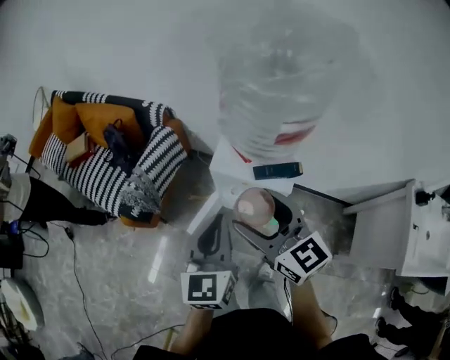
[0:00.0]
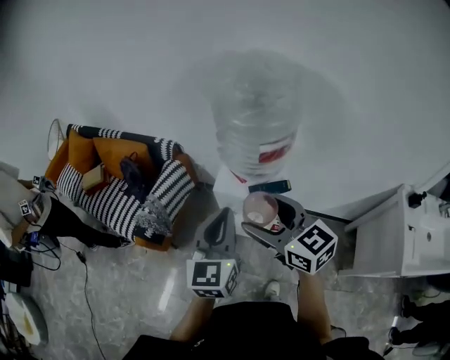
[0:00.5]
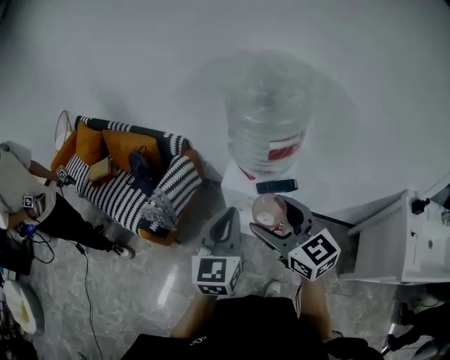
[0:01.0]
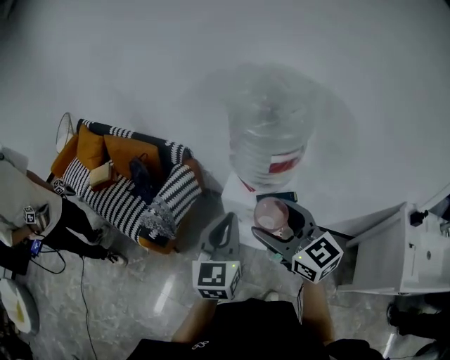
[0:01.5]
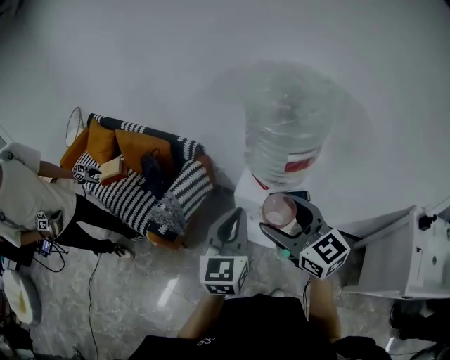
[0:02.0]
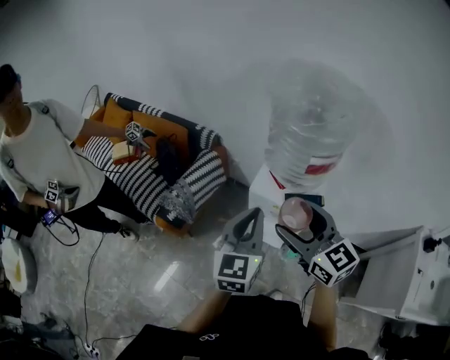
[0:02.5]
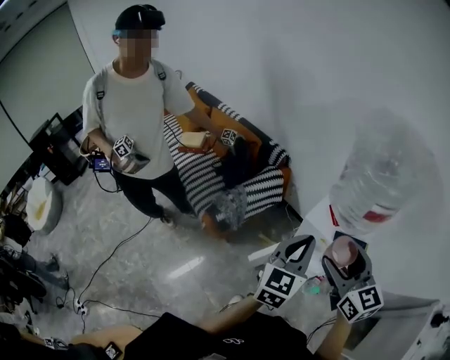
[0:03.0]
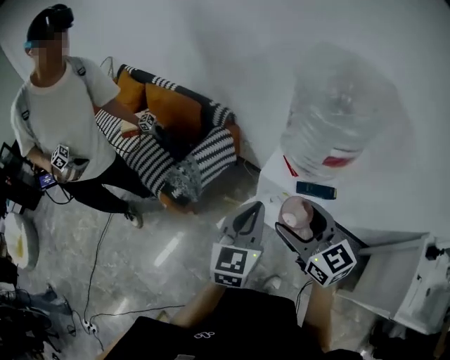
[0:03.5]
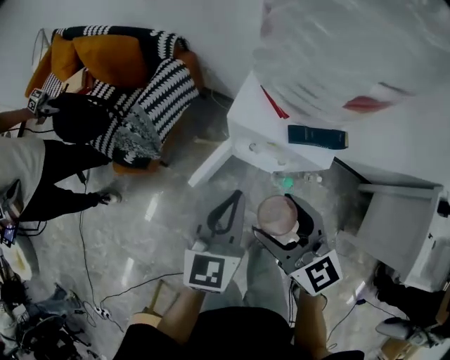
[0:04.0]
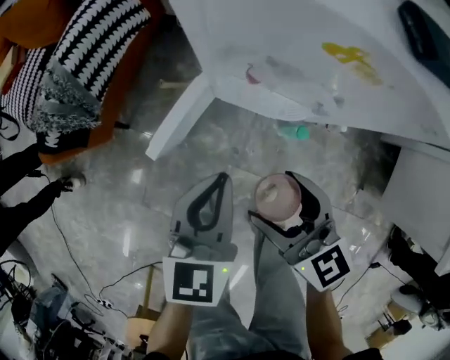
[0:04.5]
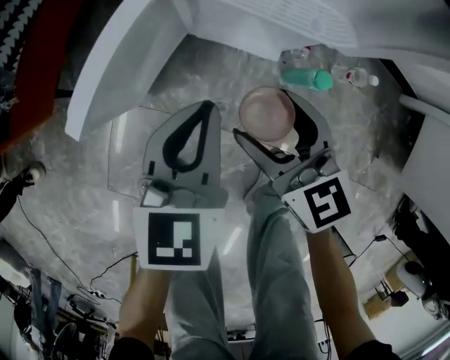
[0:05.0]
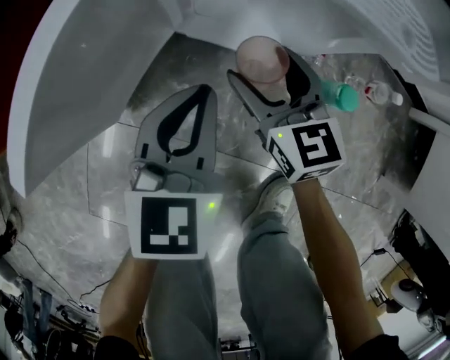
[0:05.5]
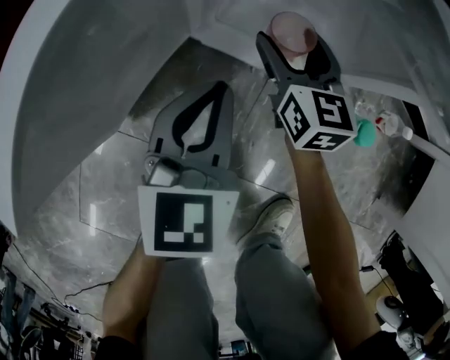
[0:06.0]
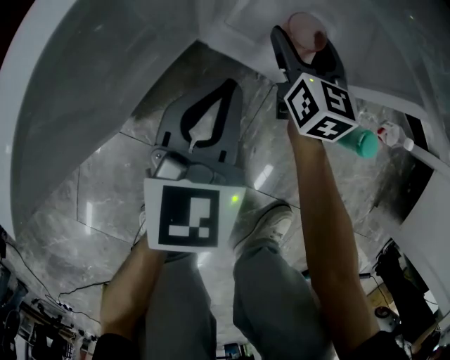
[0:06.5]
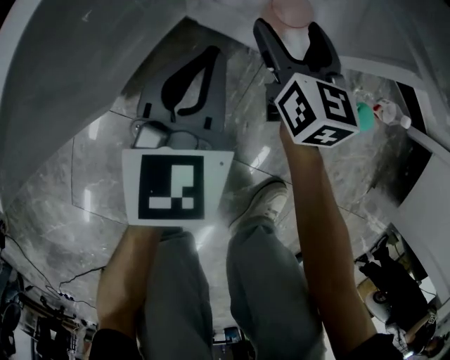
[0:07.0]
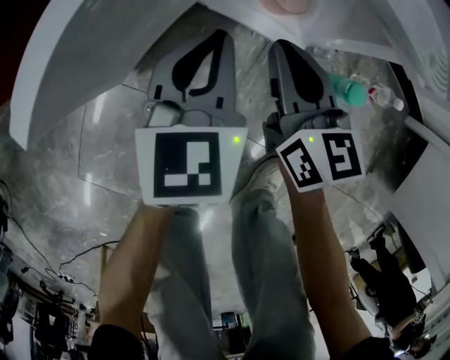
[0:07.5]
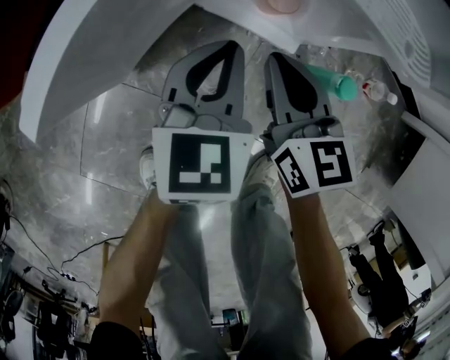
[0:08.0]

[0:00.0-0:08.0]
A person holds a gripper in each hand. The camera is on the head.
0:00.0 to 0:02.0: Both grippers travel together upward, approximately 10 cm.
0:02.0 to 0:04.0: The two grippers go approximately 20 cm downward.
0:04.0 to 0:06.0: The two grippers go roughly 70 cm downward. The right gripper turns by some 30 degrees.
0:06.0 to 0:08.0: The right gripper travels backward and upward by about 15 cm, and closes up. Meanwhile the left gripper heads upward, covering some 5 cm.

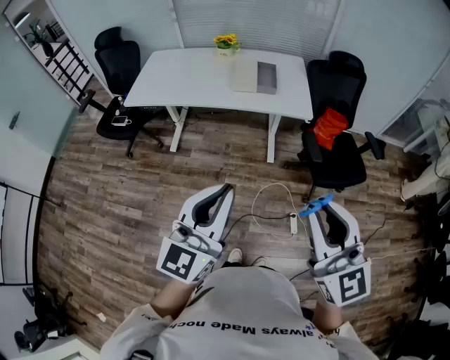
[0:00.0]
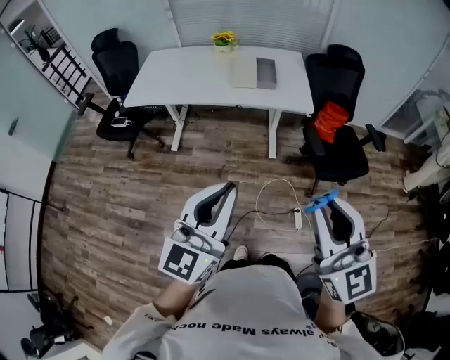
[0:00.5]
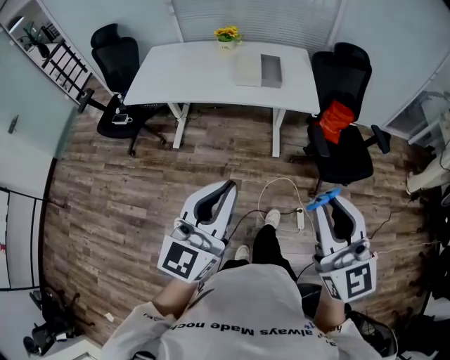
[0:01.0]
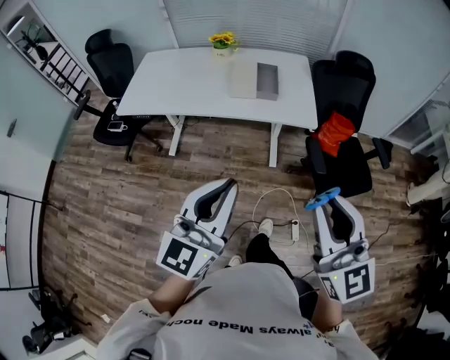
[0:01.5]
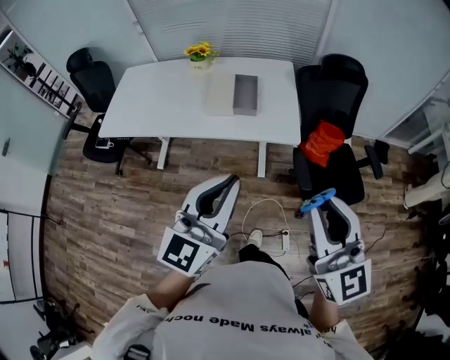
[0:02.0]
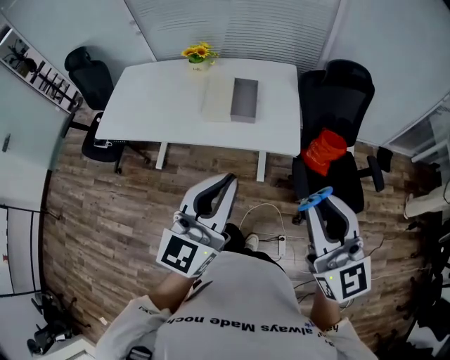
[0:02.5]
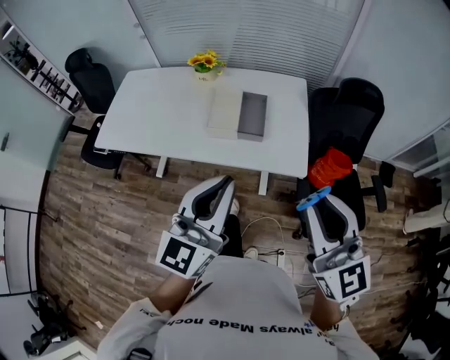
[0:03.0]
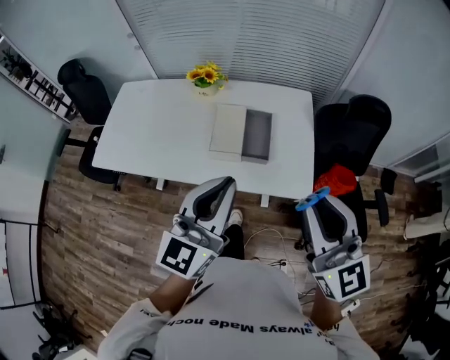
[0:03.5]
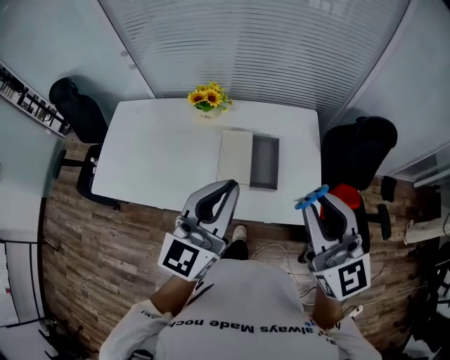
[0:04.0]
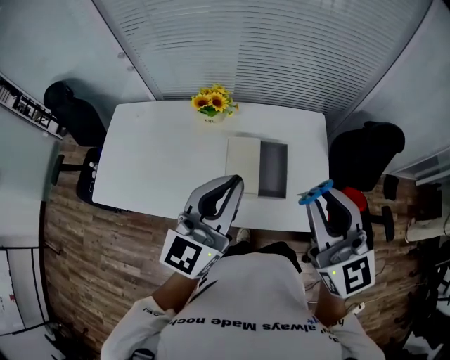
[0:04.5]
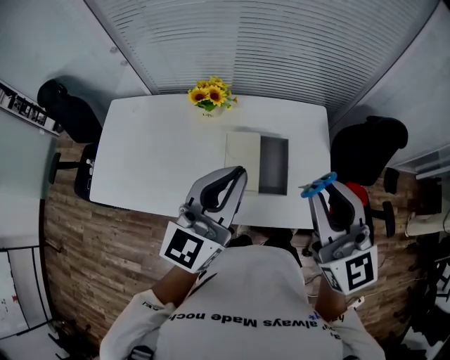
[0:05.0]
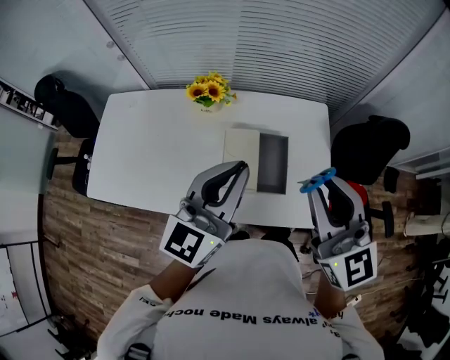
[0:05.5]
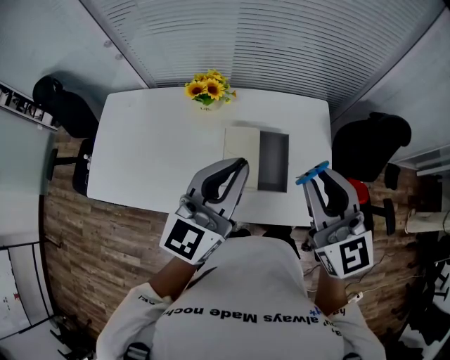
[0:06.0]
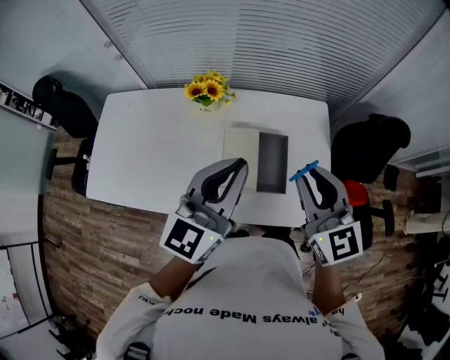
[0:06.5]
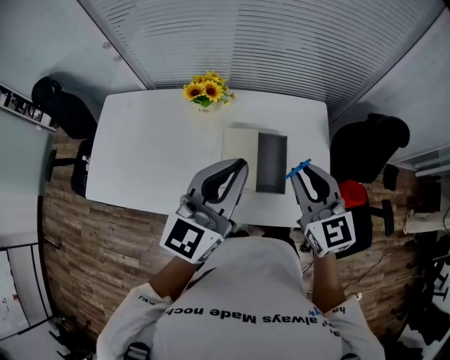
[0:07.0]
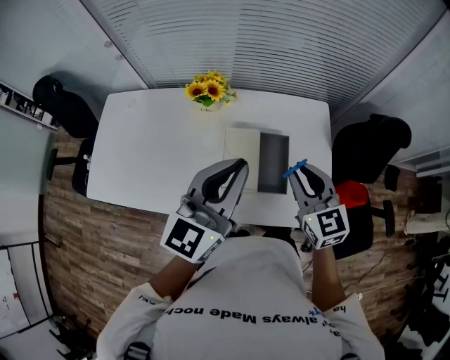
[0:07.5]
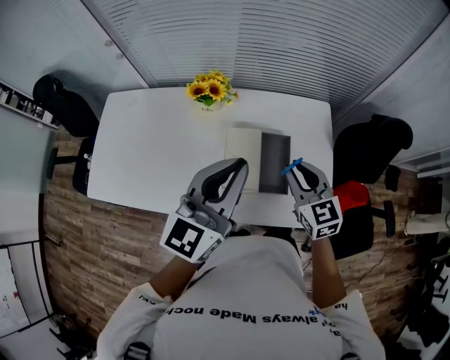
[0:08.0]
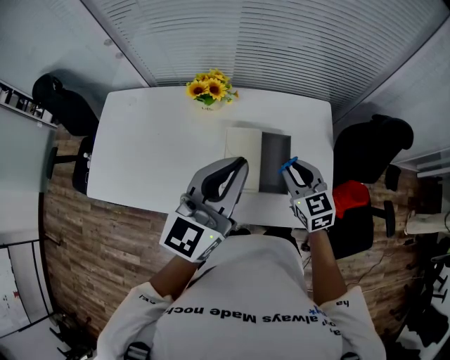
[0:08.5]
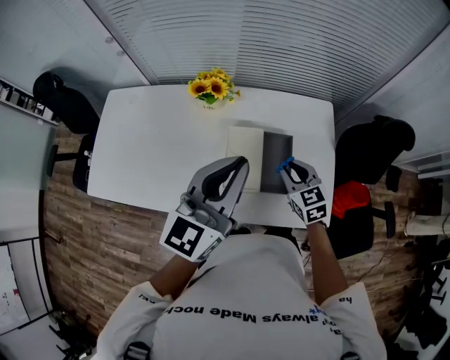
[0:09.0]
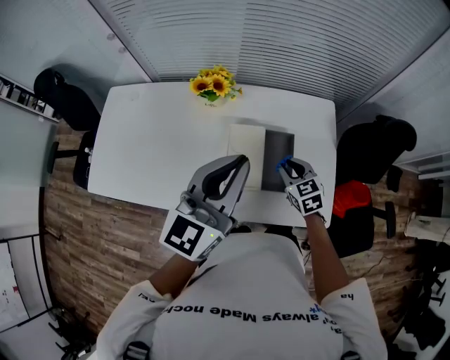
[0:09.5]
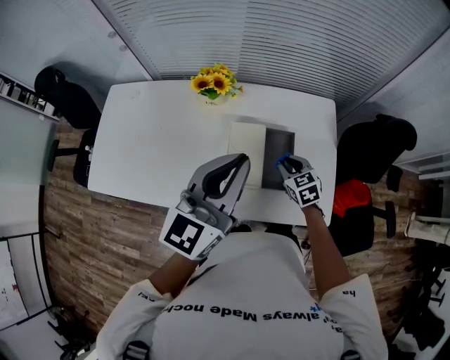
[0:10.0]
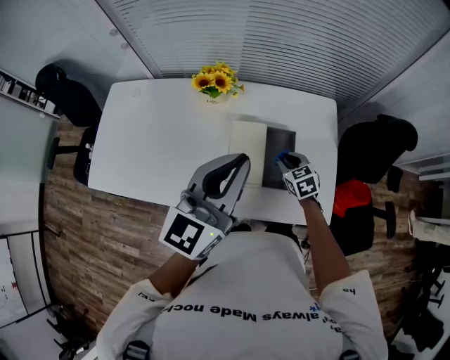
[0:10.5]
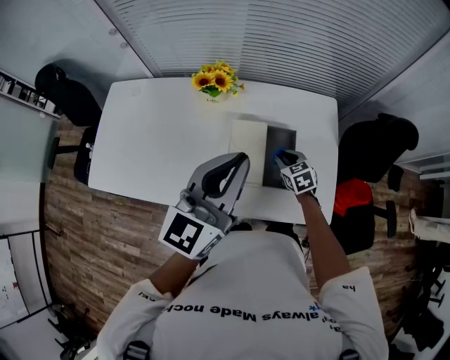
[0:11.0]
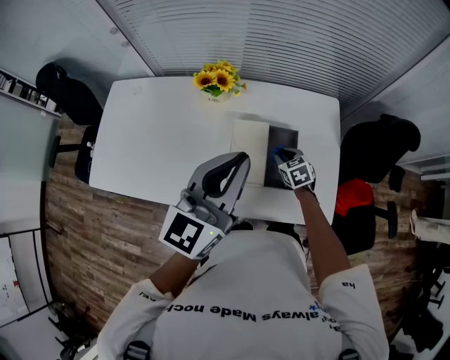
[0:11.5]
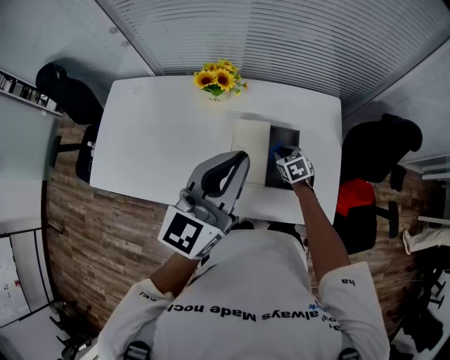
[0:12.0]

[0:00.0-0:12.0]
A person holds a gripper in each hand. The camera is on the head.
0:00.0 to 0:02.0: Both grippers travel together forward and to the right, roughly 25 cm.
0:02.0 to 0:04.0: Both grippers move forward, approximately 35 cm.
0:04.0 to 0:06.0: The two grippers go roughly 10 cm forward.
0:06.0 to 0:08.0: The right gripper goes roughly 15 cm downward.
0:08.0 to 0:10.0: The right gripper moves downward, about 15 cm.
0:10.0 to 0:12.0: The right gripper travels downward by approximately 10 cm.

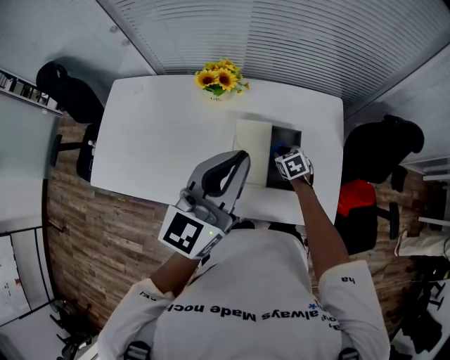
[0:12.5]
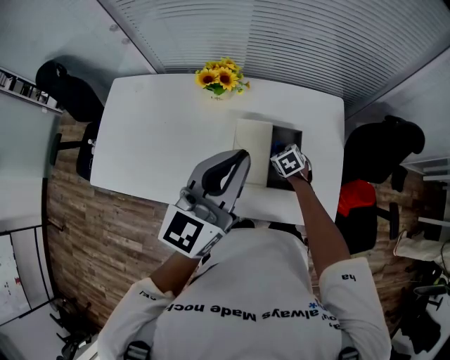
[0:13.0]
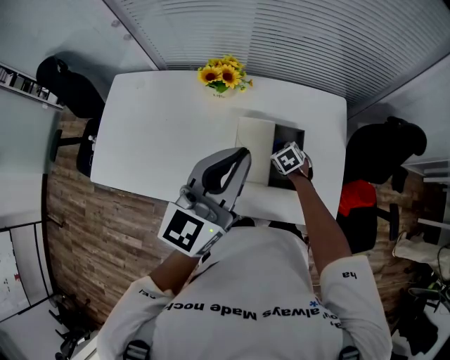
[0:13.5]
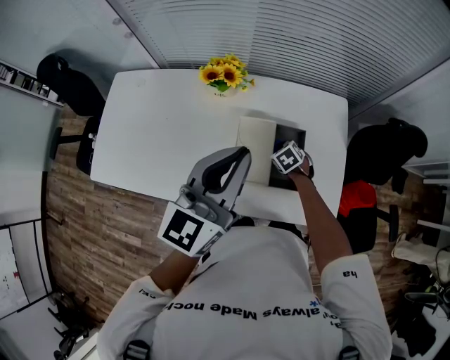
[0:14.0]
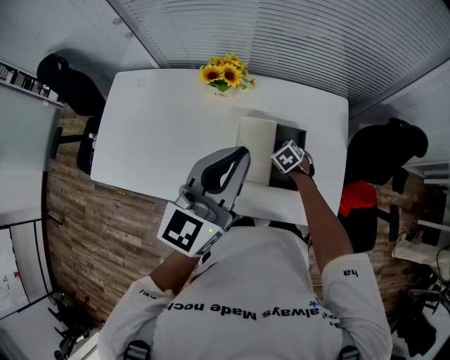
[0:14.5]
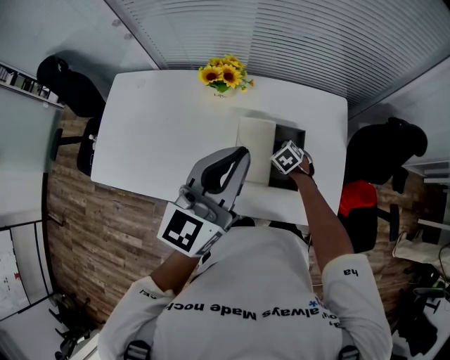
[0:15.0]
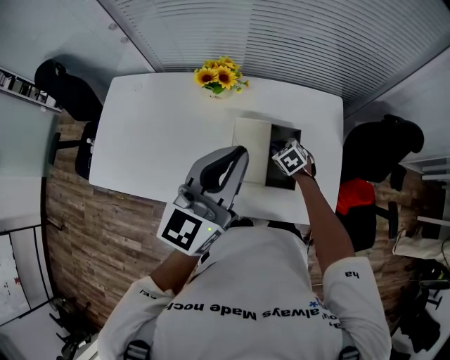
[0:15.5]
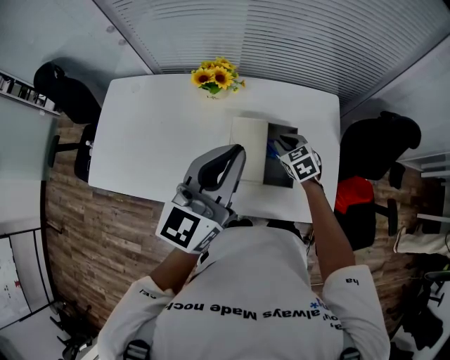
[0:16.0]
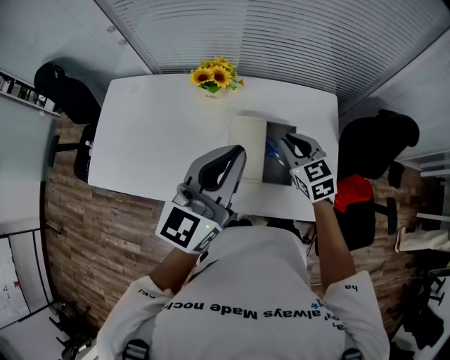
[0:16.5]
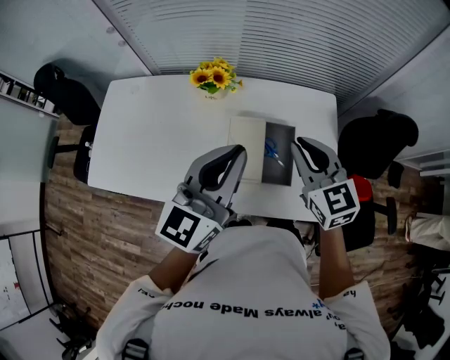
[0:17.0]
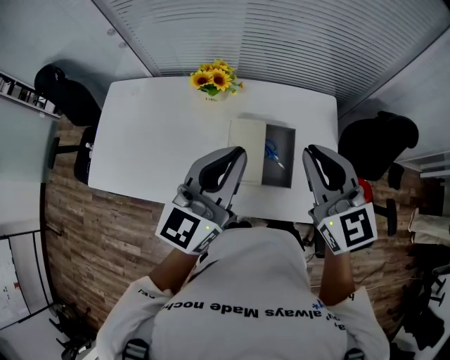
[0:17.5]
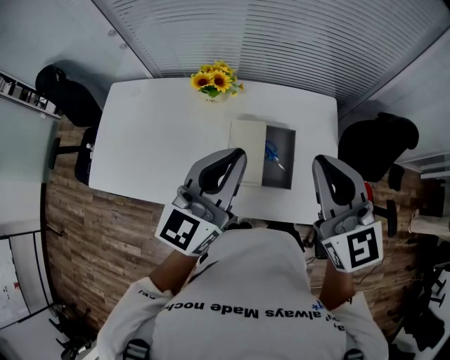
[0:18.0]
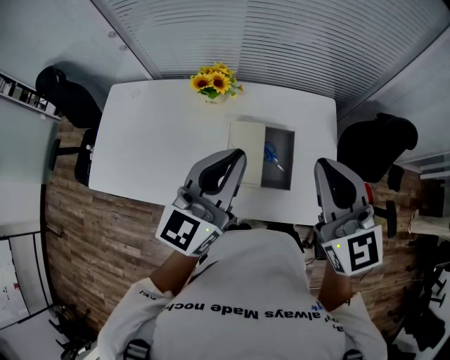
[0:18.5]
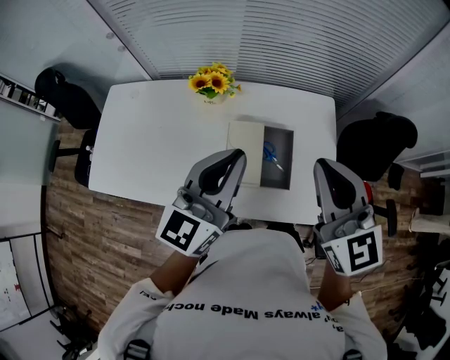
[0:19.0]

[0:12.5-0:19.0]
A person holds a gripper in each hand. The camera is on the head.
0:12.5 to 0:14.5: There are only small adjustments of the grippers.
0:14.5 to 0:17.0: The right gripper moves upward, approximately 35 cm, and angles its fingers upward, by approximately 50 degrees.
0:17.0 to 0:19.0: The right gripper shifts about 10 cm upward and backward.

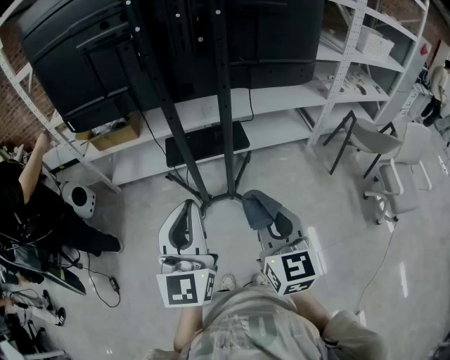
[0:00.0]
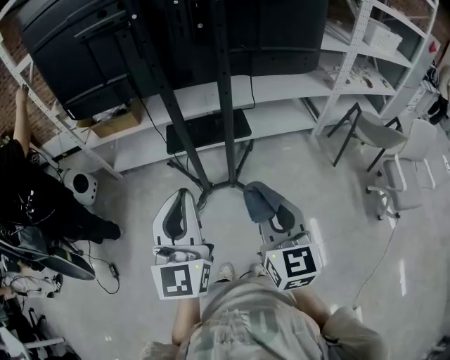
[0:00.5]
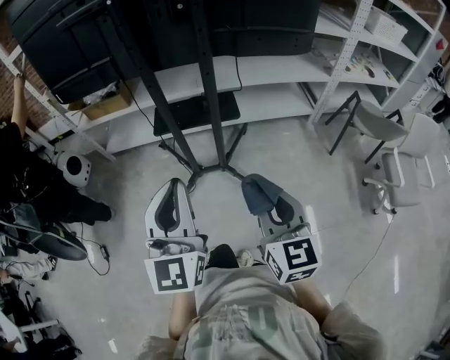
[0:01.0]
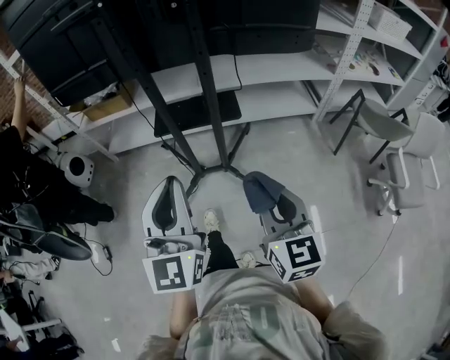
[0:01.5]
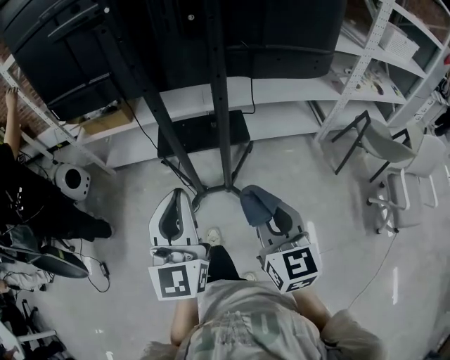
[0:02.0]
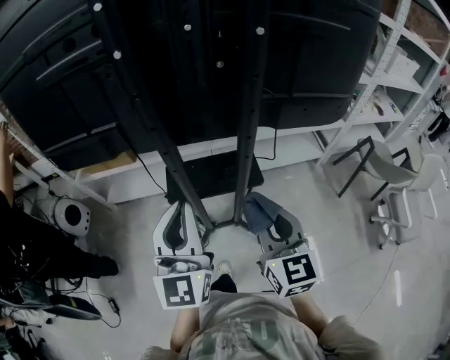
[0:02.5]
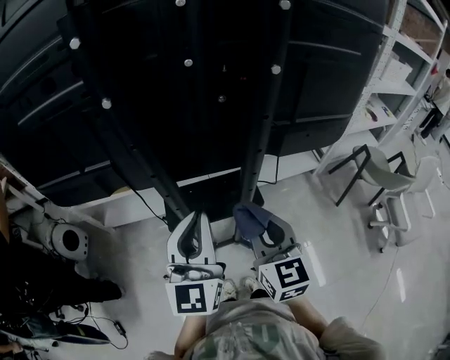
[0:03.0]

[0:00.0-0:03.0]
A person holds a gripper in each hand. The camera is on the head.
0:00.0 to 0:01.5: Both grippers move to the right, some 10 cm.
0:01.5 to 0:03.0: The grippers both shift forward by some 35 cm.
